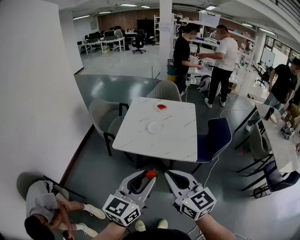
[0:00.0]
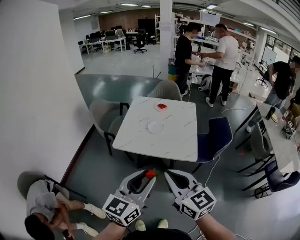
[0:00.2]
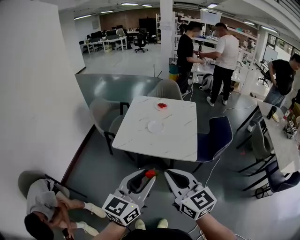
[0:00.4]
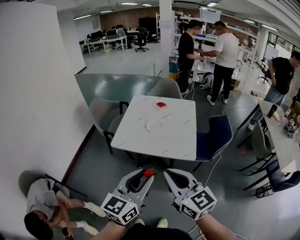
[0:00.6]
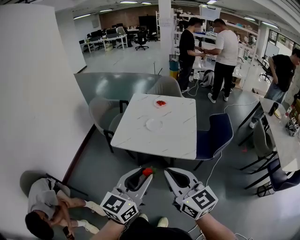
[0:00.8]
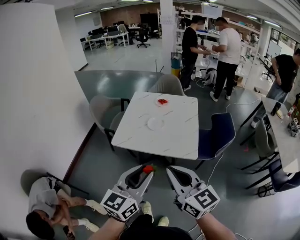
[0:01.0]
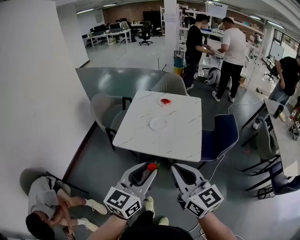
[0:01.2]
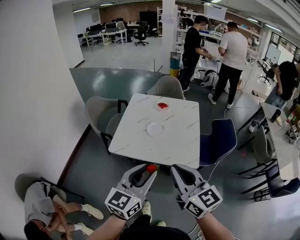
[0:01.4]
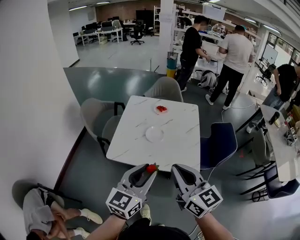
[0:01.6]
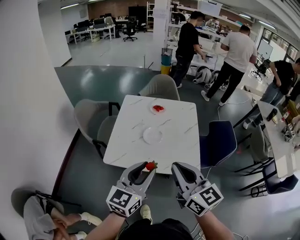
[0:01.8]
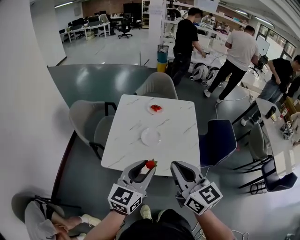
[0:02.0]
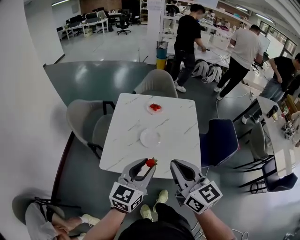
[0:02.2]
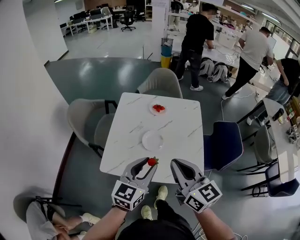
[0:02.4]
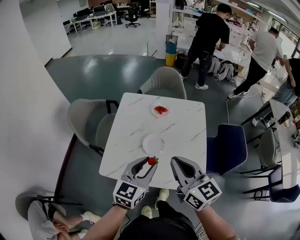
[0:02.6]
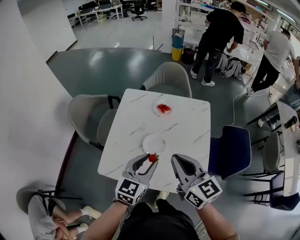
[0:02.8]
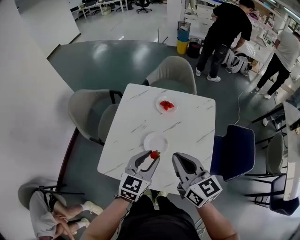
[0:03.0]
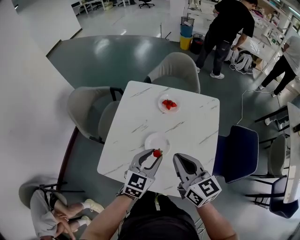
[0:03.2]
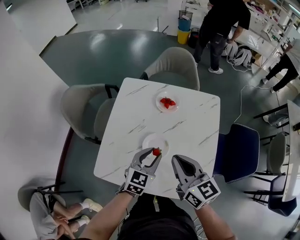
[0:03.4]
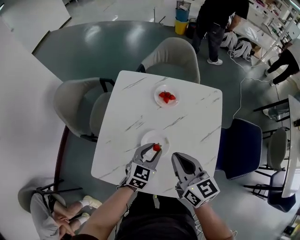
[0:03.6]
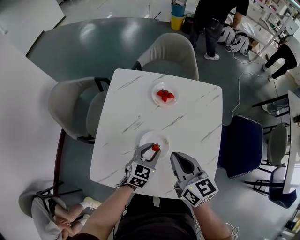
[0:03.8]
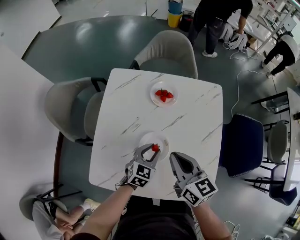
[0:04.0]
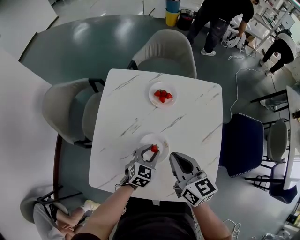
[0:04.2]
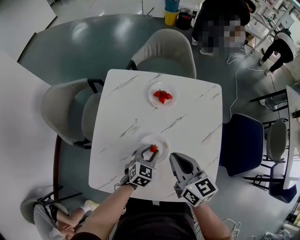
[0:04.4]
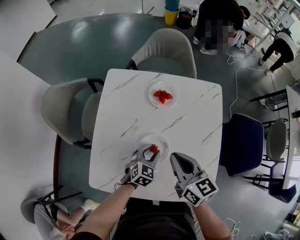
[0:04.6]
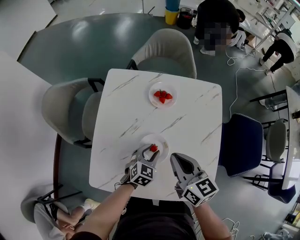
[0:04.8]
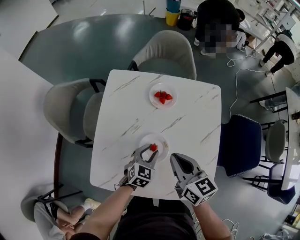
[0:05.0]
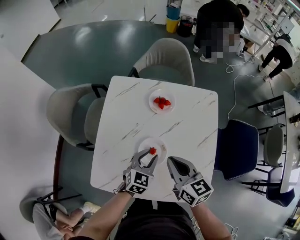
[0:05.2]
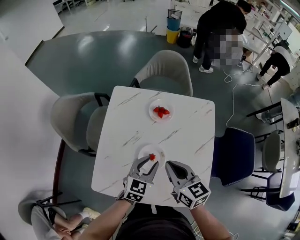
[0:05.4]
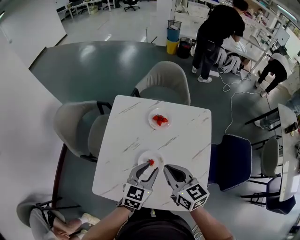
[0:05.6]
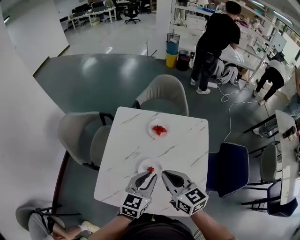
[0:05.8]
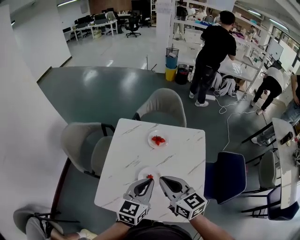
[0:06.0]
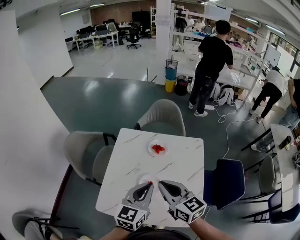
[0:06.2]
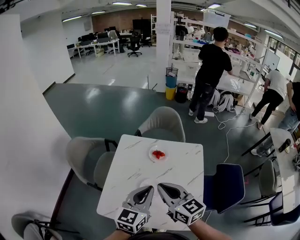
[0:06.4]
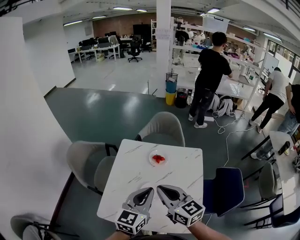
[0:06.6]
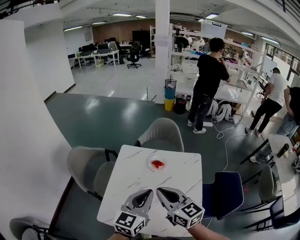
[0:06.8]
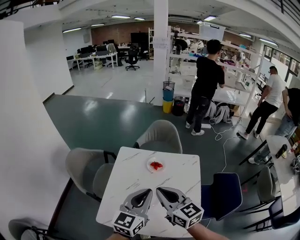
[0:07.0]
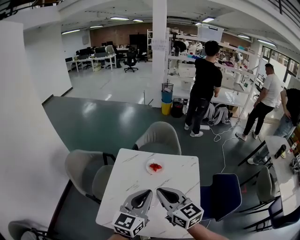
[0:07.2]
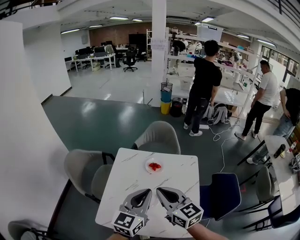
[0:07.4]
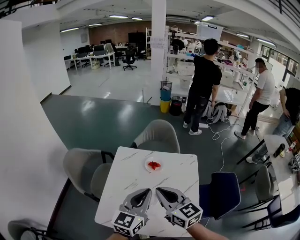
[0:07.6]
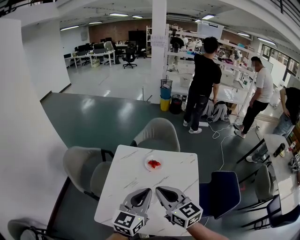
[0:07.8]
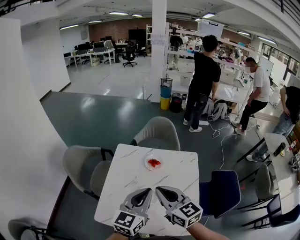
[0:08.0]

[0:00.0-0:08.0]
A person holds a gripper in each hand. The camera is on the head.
0:00.0 to 0:01.6: The two grippers go roughly 15 cm forward.
0:01.6 to 0:03.2: The two grippers go some 40 cm forward and downward. The left gripper swivels approximately 20 degrees.
0:03.2 to 0:04.8: The right gripper shifts some 15 cm downward and forward. Meanwhile the left gripper travels downward by some 20 cm, and turns by about 20 degrees.
0:04.8 to 0:06.4: The left gripper travels upward by some 35 cm, angles its fingers upward, by roughly 30 degrees, and closes. The right gripper goes approximately 20 cm upward.
0:06.4 to 0:08.0: The grippers stay close to where they were, moving slightly.

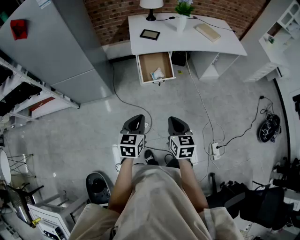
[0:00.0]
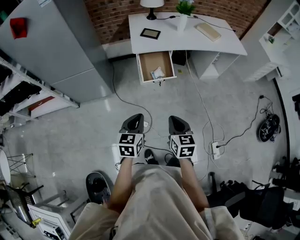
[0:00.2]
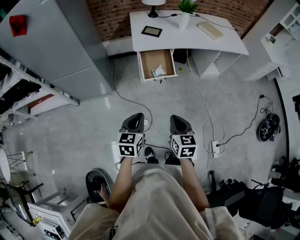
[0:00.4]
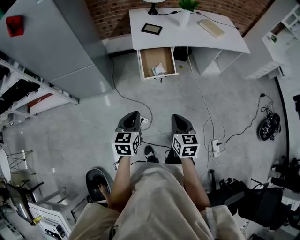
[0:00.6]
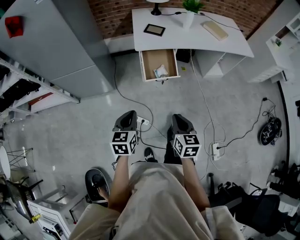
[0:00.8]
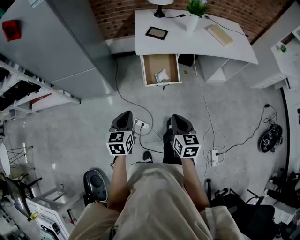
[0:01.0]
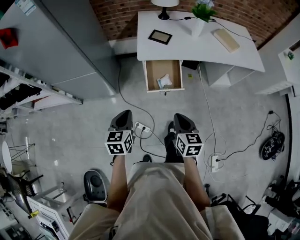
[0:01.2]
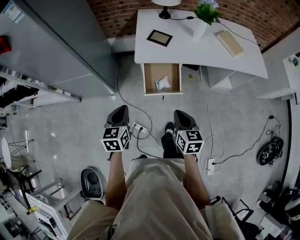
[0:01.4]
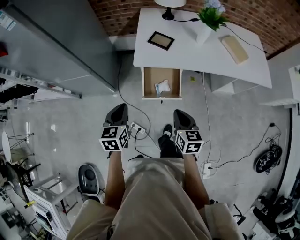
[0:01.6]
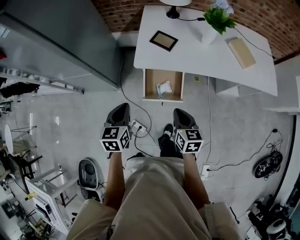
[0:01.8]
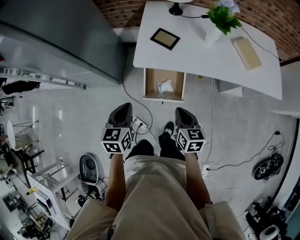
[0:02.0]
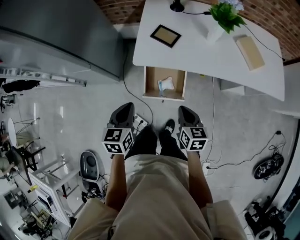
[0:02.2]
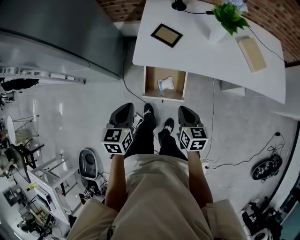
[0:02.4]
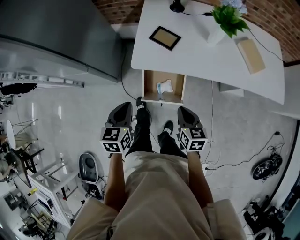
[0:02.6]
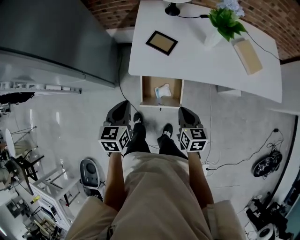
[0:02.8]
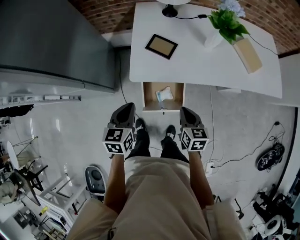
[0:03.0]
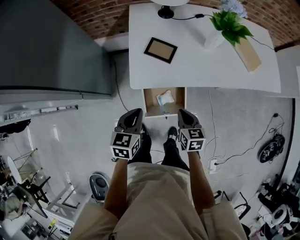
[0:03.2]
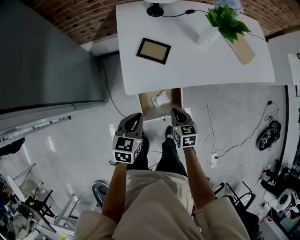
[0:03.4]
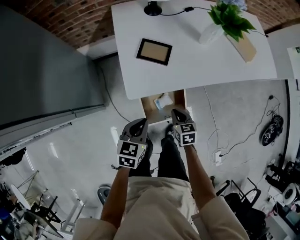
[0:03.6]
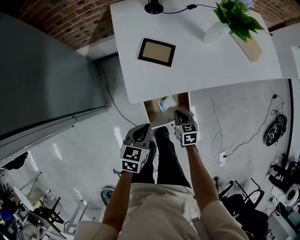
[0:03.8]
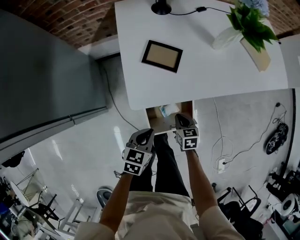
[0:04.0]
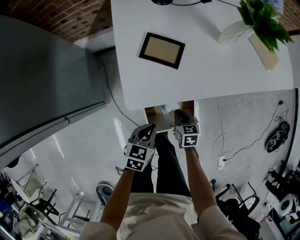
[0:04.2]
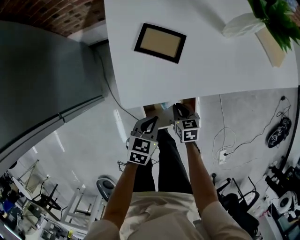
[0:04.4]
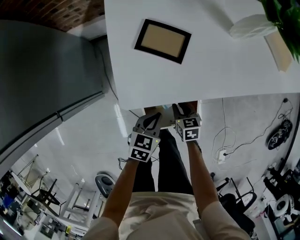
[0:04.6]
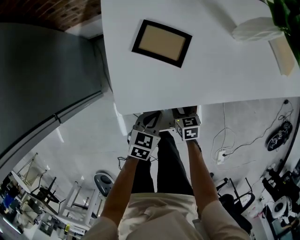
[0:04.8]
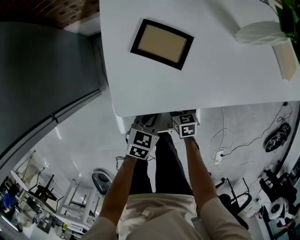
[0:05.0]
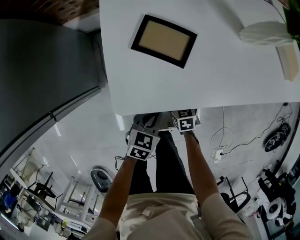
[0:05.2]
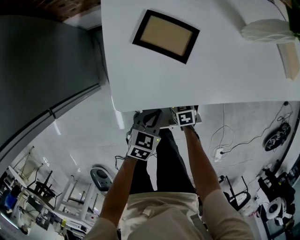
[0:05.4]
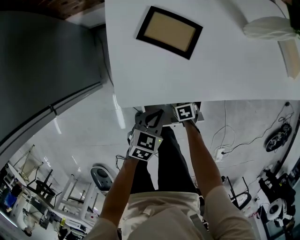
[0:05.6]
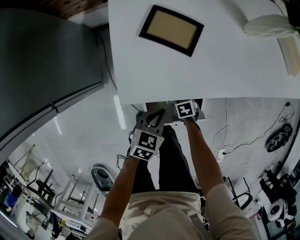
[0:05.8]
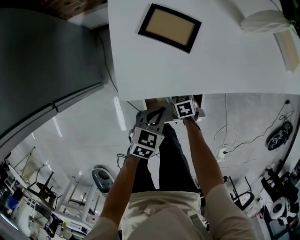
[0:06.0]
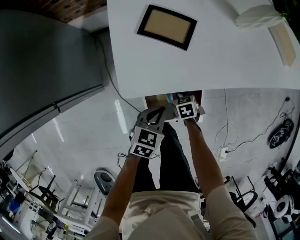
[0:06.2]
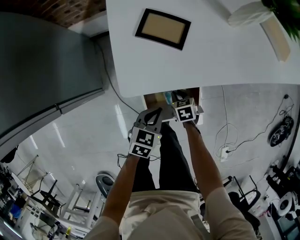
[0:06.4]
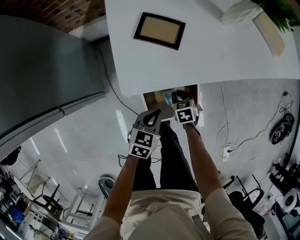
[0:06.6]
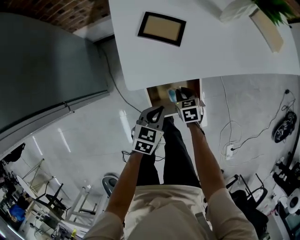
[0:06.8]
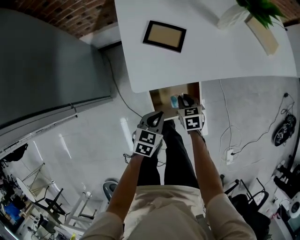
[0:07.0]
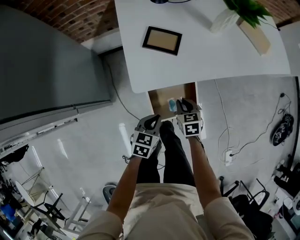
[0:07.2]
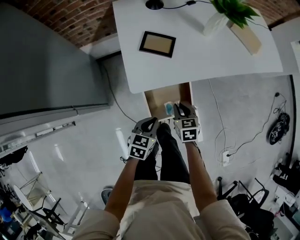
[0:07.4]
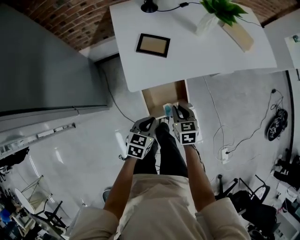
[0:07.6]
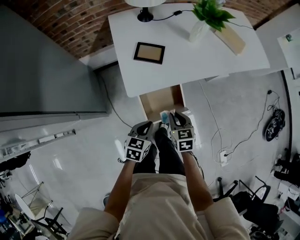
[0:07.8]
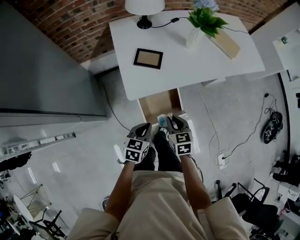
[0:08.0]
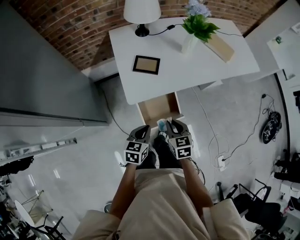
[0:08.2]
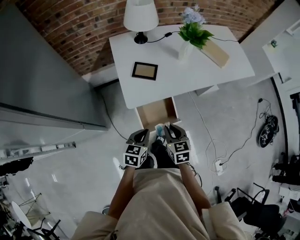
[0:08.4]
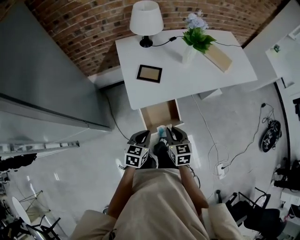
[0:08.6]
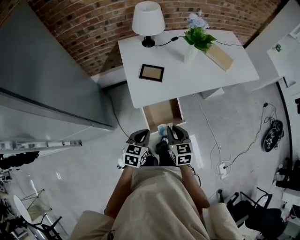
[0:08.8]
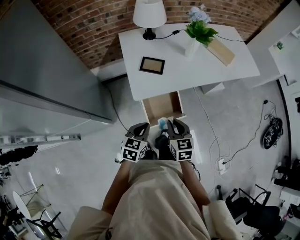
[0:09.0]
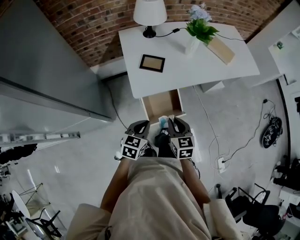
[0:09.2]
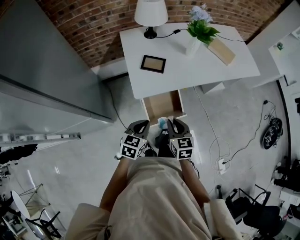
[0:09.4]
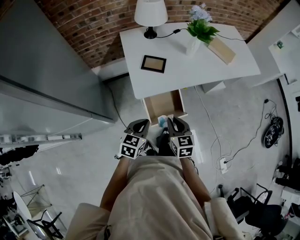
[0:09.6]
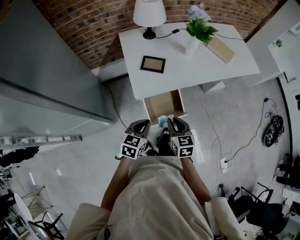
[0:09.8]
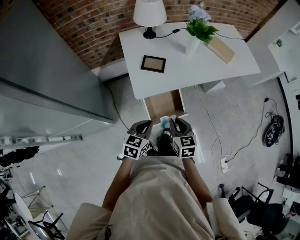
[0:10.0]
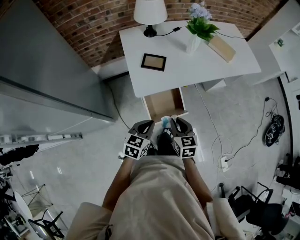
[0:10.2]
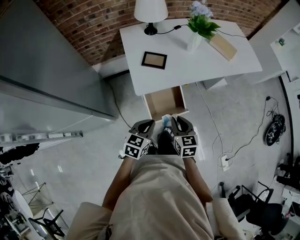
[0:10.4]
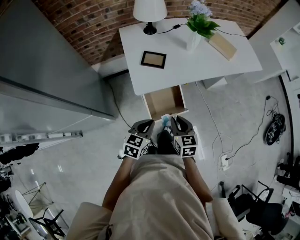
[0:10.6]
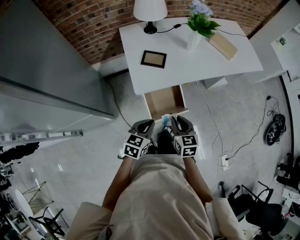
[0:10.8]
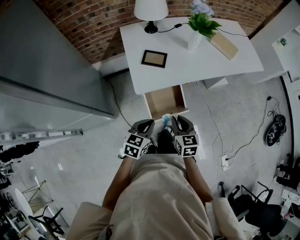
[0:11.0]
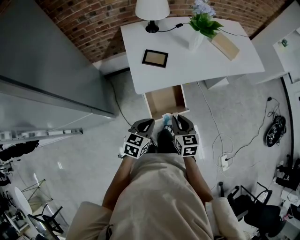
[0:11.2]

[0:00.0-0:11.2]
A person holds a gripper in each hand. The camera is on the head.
0:00.0 to 0:01.6: Both grippers travel together forward, some 30 cm.
0:01.6 to 0:03.2: The right gripper travels forward and downward by about 20 cm. Meanwhile the left gripper is displaced forward by approximately 15 cm.
0:03.2 to 0:04.8: Both grippers move downward, approximately 25 cm. The right gripper opens its fingers. Meanwhile the left gripper turns by about 20 degrees.
0:04.8 to 0:06.4: The left gripper ends up roughly 5 cm from where it was; the right gripper moves roughly 10 cm downward and comes back, and opens and closes again.
0:06.4 to 0:08.0: The left gripper travels upward and backward by roughly 15 cm. The right gripper goes approximately 30 cm upward, and changes its angle by some 30 degrees.
0:08.0 to 0:09.6: The left gripper goes roughly 10 cm upward. Meanwhile the right gripper is displaced upward and backward by about 10 cm.
0:09.6 to 0:11.2: There are only small adjustments of the grippers.

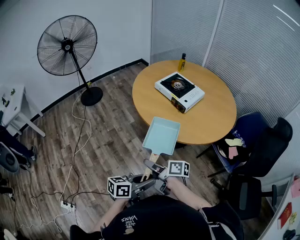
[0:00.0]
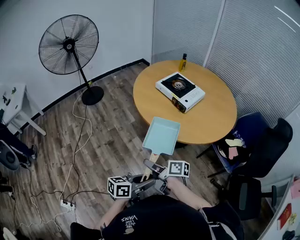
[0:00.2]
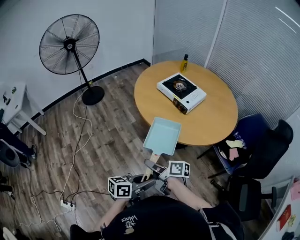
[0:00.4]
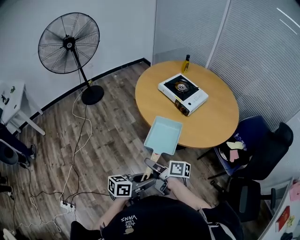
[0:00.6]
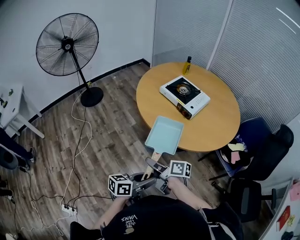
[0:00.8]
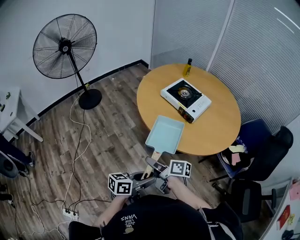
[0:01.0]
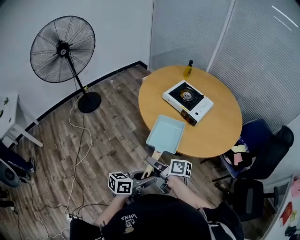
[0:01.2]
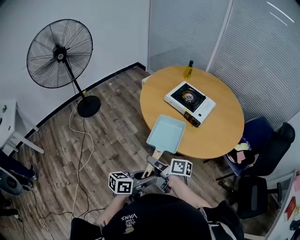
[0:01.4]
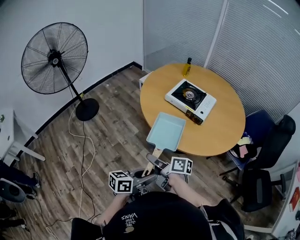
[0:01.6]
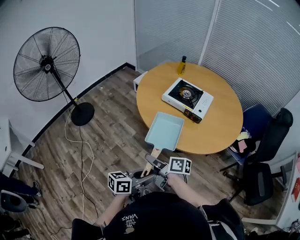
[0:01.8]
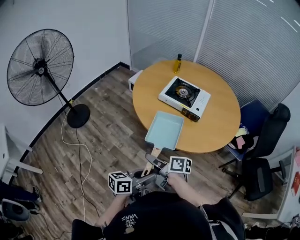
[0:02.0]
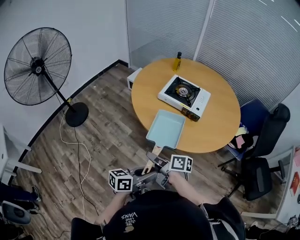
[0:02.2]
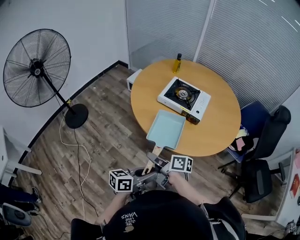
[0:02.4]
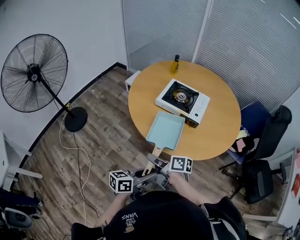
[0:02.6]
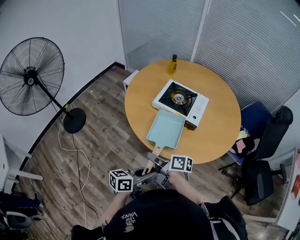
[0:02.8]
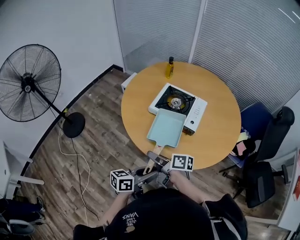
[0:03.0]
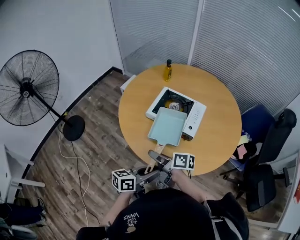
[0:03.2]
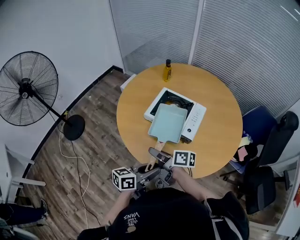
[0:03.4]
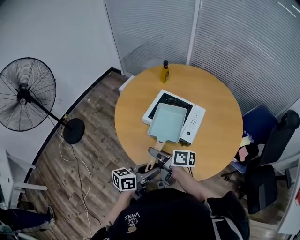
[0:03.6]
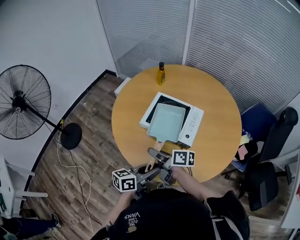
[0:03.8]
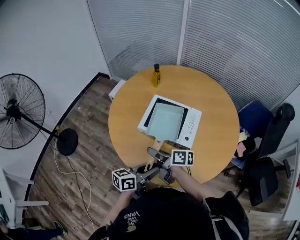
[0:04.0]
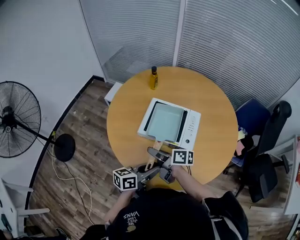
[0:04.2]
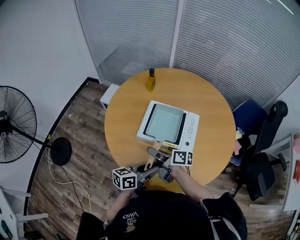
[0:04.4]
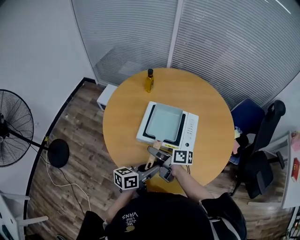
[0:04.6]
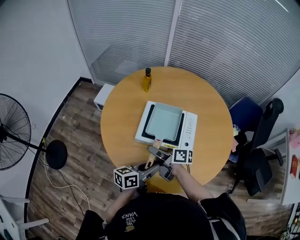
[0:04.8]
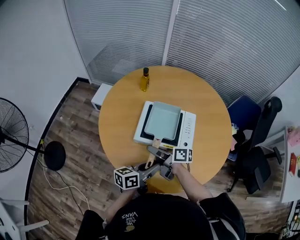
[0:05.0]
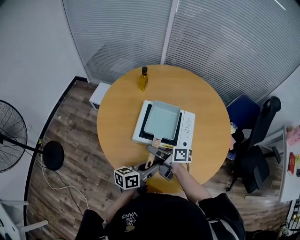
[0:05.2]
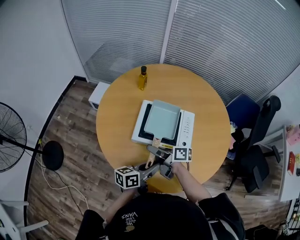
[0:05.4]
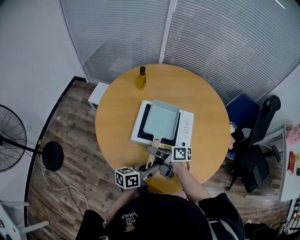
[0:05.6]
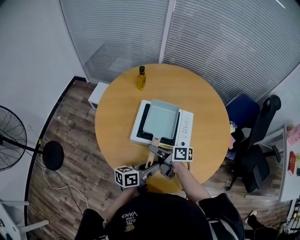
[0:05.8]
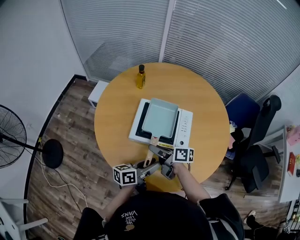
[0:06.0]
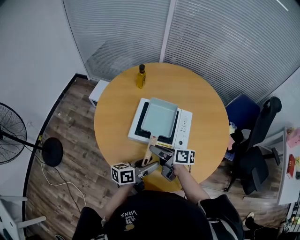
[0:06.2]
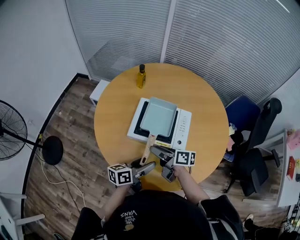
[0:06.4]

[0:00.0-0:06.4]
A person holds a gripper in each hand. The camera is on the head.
0:00.0 to 0:01.6: The right gripper moves forward and to the left, roughly 20 cm, while the left gripper is displaced to the left and forward by approximately 25 cm.
0:01.6 to 0:03.2: The two grippers go some 20 cm forward.
0:03.2 to 0:04.8: The two grippers go some 20 cm forward.
0:04.8 to 0:06.4: The left gripper opens up. Meanwhile the right gripper moves to the right, some 5 cm.
